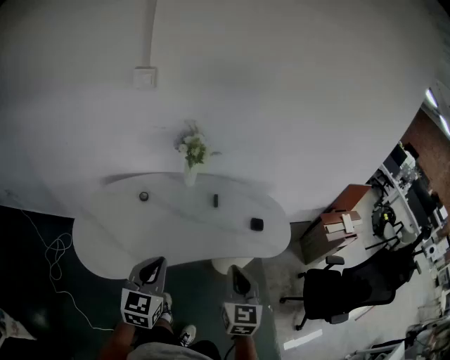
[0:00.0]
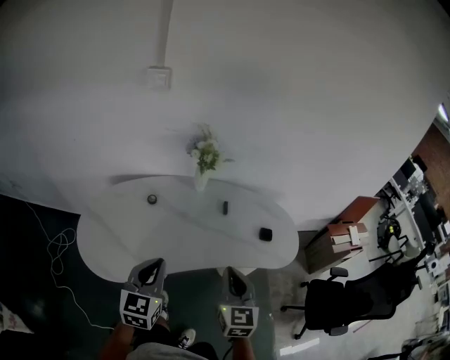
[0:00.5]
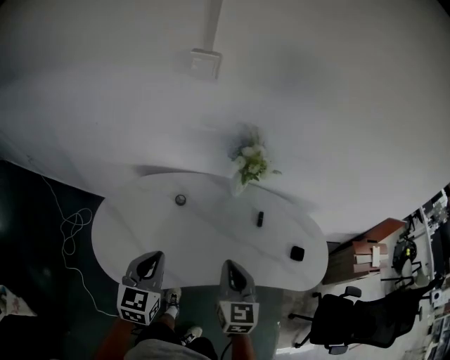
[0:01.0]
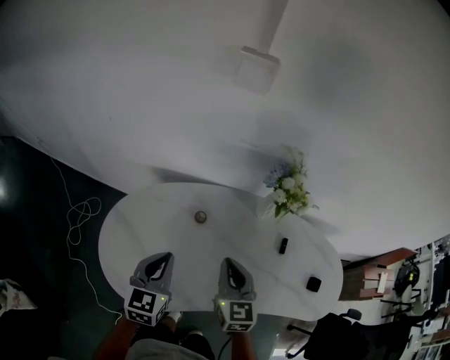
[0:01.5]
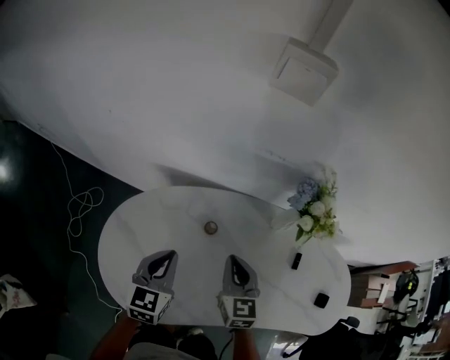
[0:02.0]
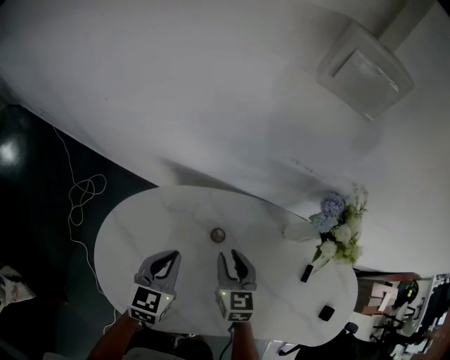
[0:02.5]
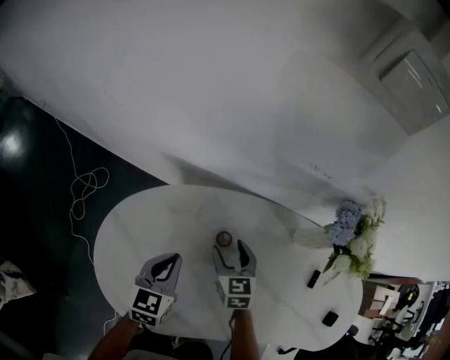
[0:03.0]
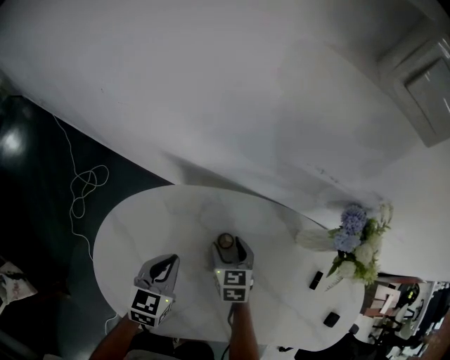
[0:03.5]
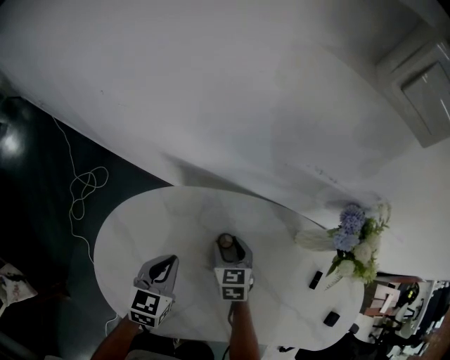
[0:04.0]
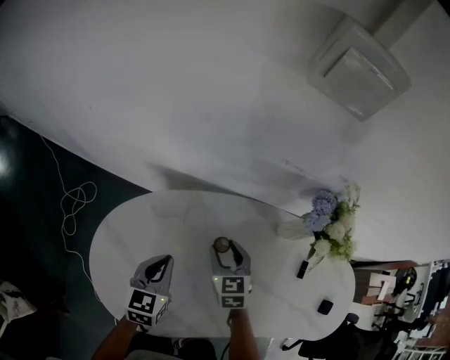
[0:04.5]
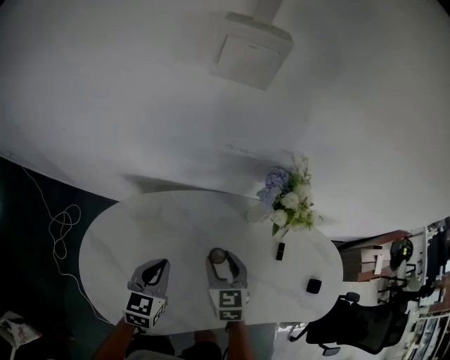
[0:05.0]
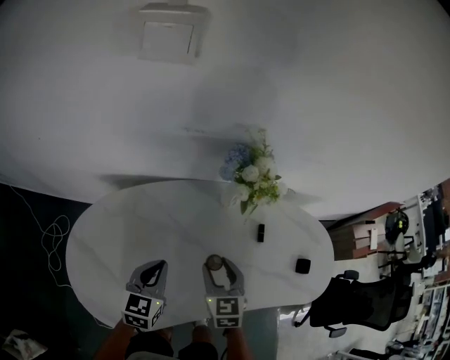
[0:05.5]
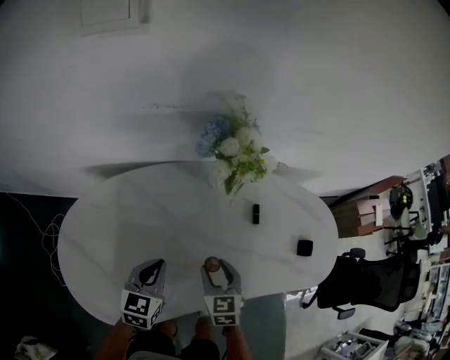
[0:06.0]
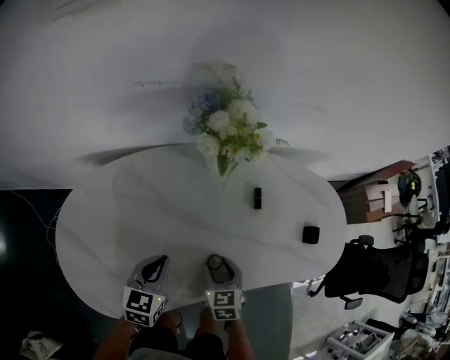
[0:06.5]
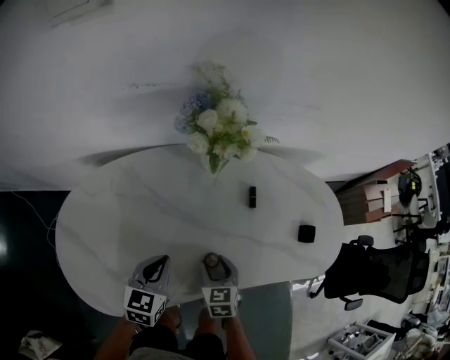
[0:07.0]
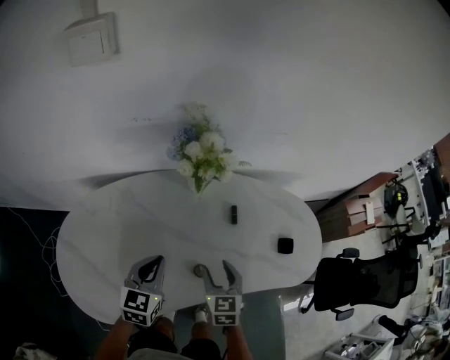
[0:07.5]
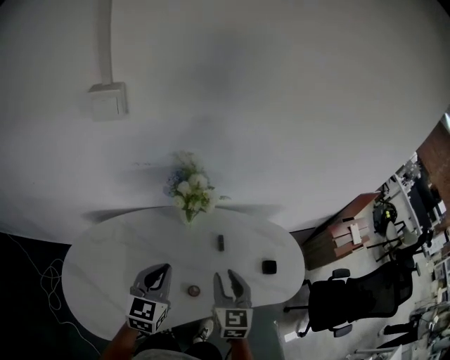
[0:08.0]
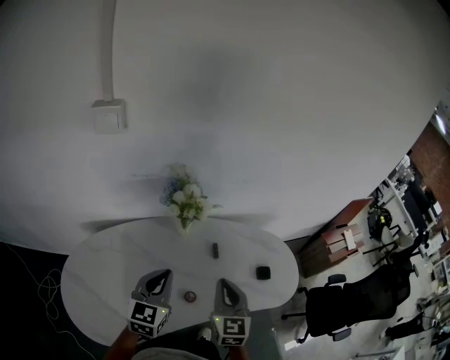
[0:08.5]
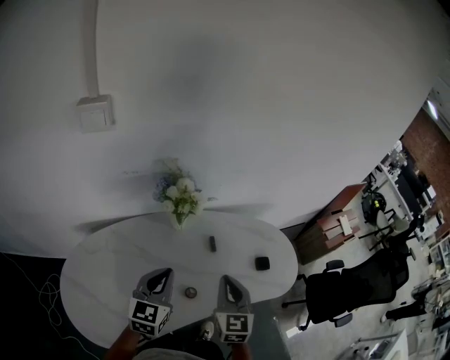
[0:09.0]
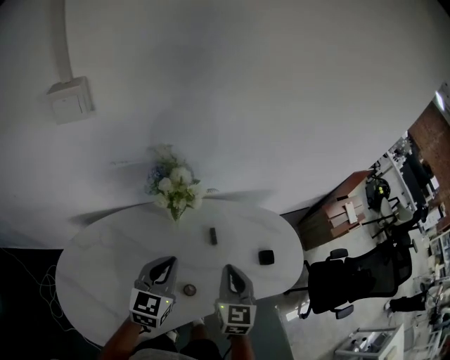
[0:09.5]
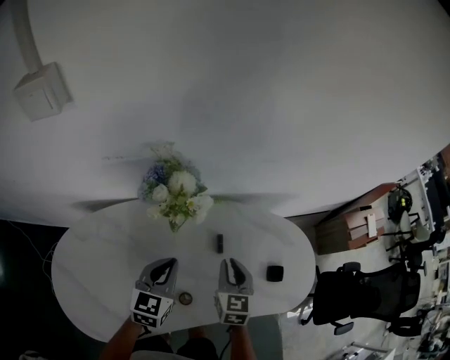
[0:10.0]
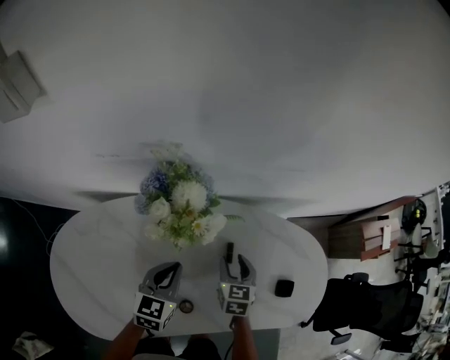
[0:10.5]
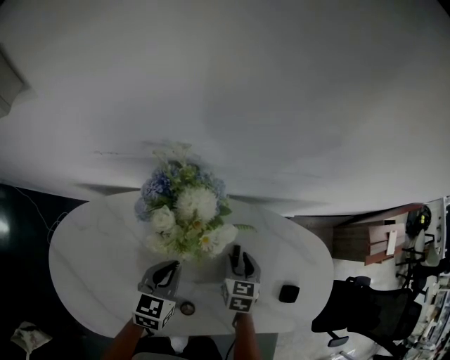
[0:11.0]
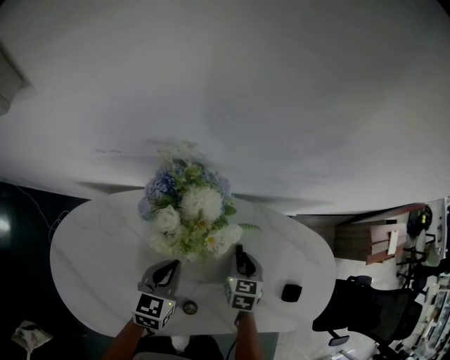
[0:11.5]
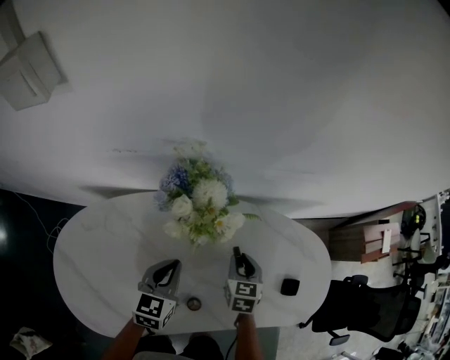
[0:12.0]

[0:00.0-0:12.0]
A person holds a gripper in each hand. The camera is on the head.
0:00.0 to 0:02.0: The left gripper shifts roughly 40 cm forward, to the left and downward, and swivels about 20 degrees. Meanwhile the right gripper is displaced forward and to the left by approximately 50 cm, and turns by some 30 degrees.
0:02.0 to 0:04.0: The left gripper shifts about 10 cm downward, while the right gripper shifts about 20 cm downward and forward, rotates approximately 20 degrees, and opens up.
0:04.0 to 0:06.0: The right gripper shifts about 30 cm to the right and backward, and rotates some 20 degrees. The left gripper travels to the right by roughly 20 cm, and rotates some 20 degrees.
0:06.0 to 0:08.0: The grippers both shift upward and to the right by approximately 20 cm. The right gripper swivels roughly 20 degrees.
0:08.0 to 0:10.0: The two grippers go about 15 cm forward and downward.
0:10.0 to 0:12.0: The left gripper shifts some 5 cm downward. Meanwhile the right gripper travels downward and forward by approximately 10 cm.

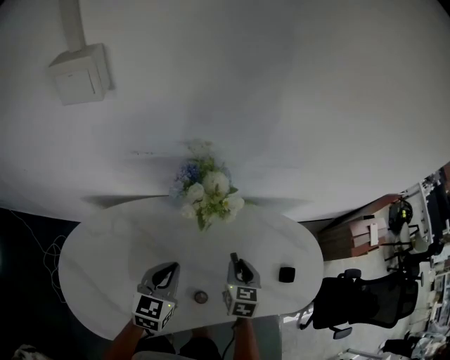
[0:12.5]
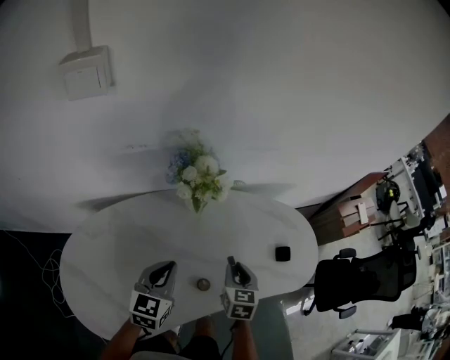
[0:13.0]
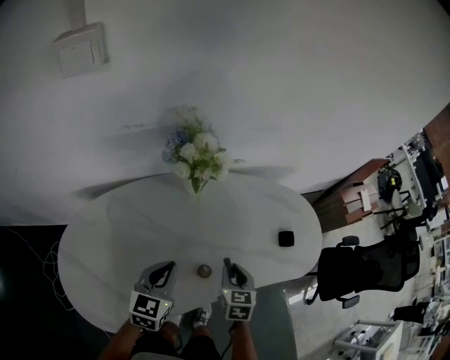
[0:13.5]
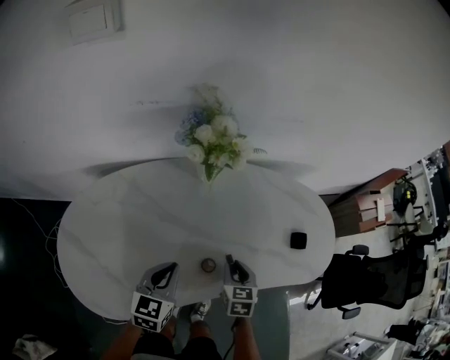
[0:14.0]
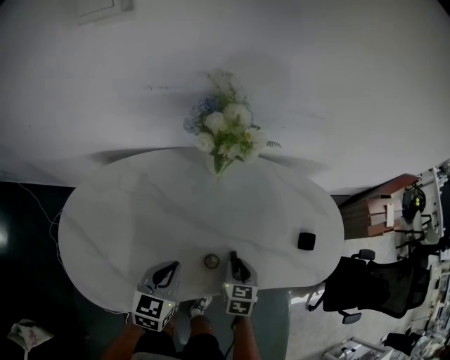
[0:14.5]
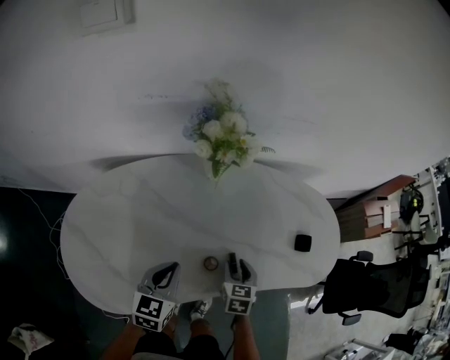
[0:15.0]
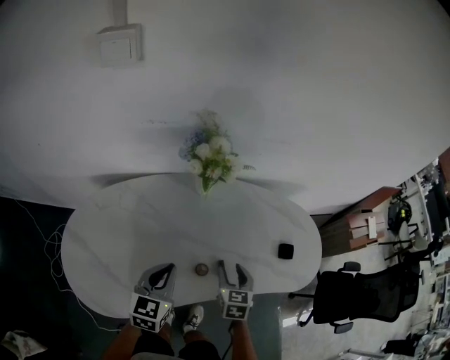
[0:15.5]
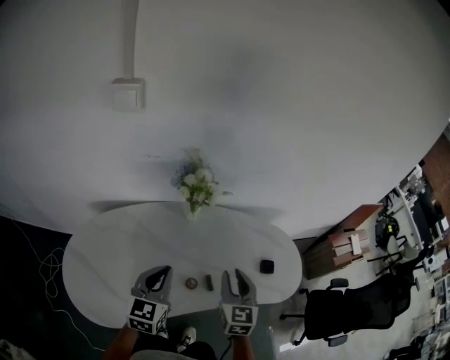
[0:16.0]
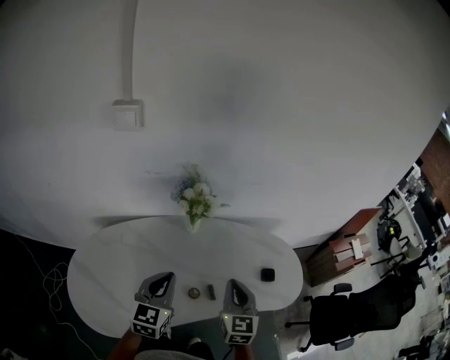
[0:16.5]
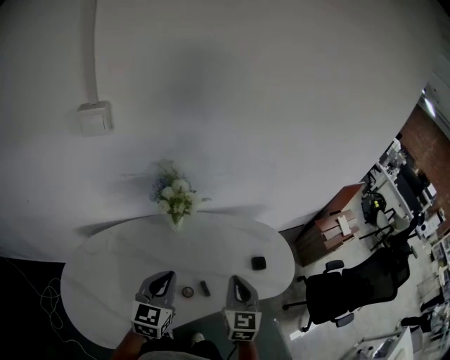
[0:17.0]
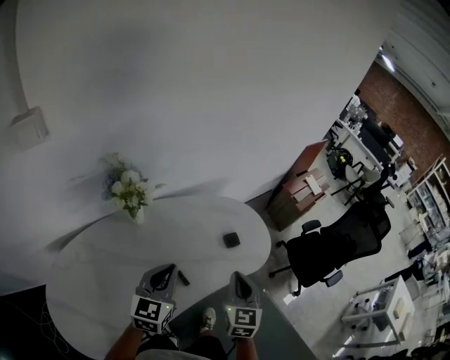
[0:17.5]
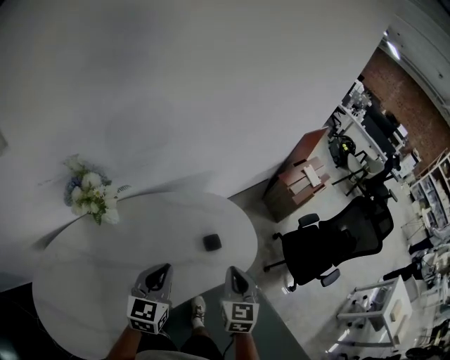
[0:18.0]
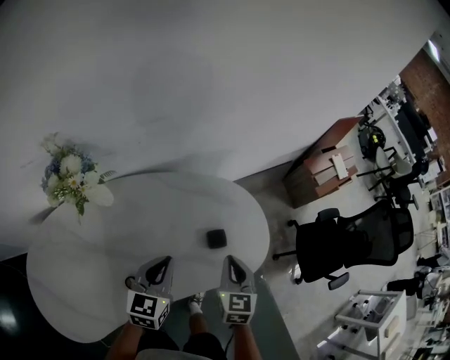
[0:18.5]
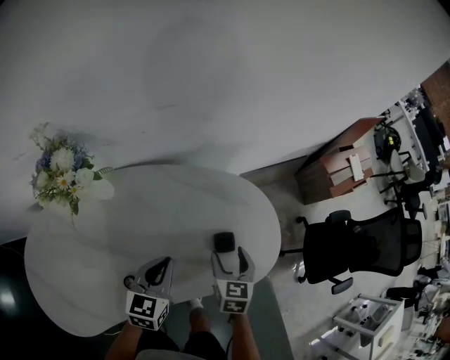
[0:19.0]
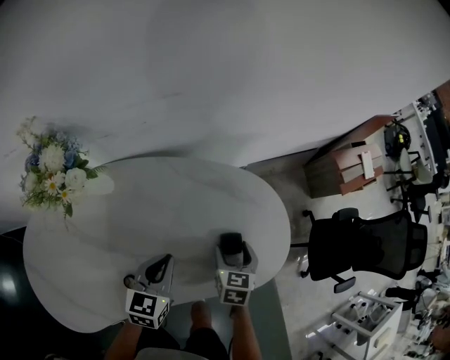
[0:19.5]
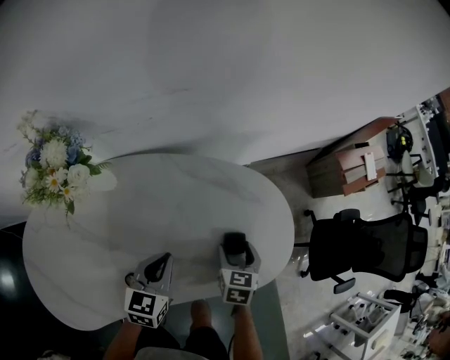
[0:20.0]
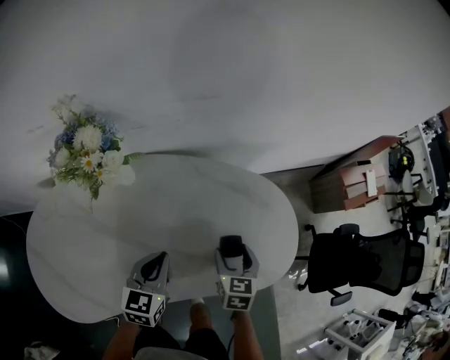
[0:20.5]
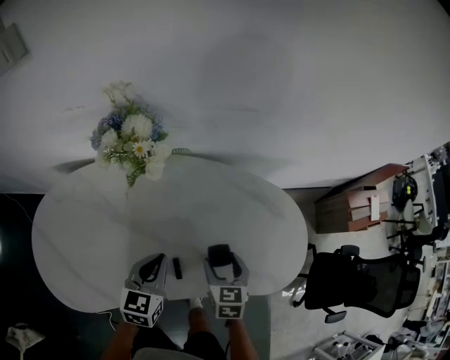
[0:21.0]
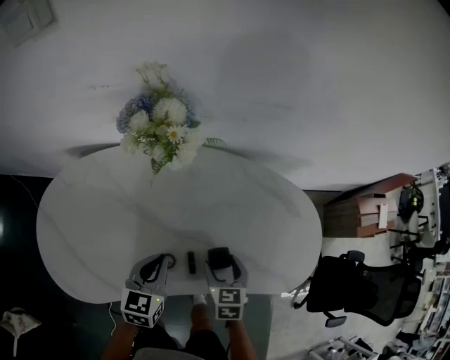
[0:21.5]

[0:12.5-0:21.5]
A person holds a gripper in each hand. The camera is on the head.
0:12.5 to 0:14.5: The two grippers go some 15 cm backward and downward.
0:14.5 to 0:17.0: Both grippers travel together upward, about 25 cm. The right gripper points its fingers approximately 30 degrees further upward. The left gripper changes its angle by about 20 degrees.
0:17.0 to 0:19.5: The right gripper goes about 35 cm downward, forward and to the right, tilts its fingers some 30 degrees downward, and opens up, while the left gripper is displaced downward, to the right and forward by approximately 30 cm, and swivels approximately 20 degrees.
0:19.5 to 0:21.5: Both grippers move to the left and backward, approximately 20 cm. The right gripper turns by roughly 30 degrees.

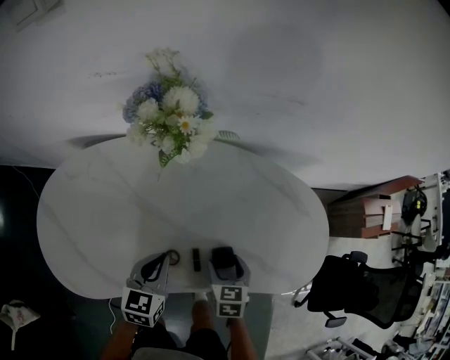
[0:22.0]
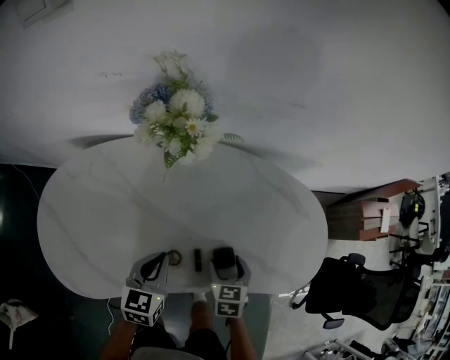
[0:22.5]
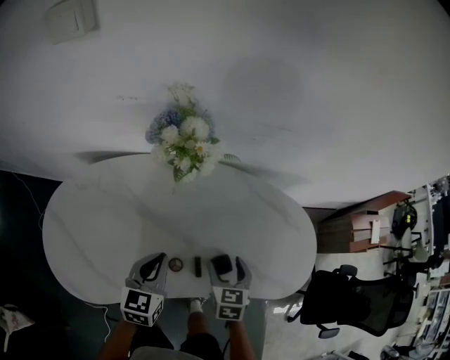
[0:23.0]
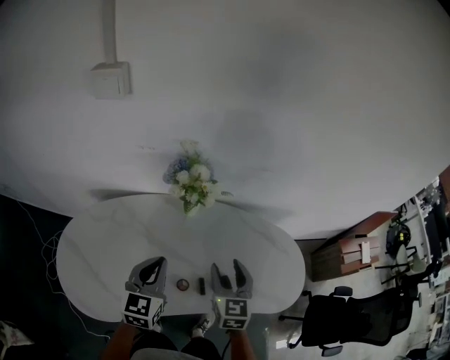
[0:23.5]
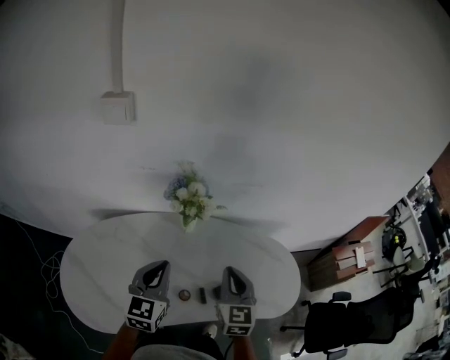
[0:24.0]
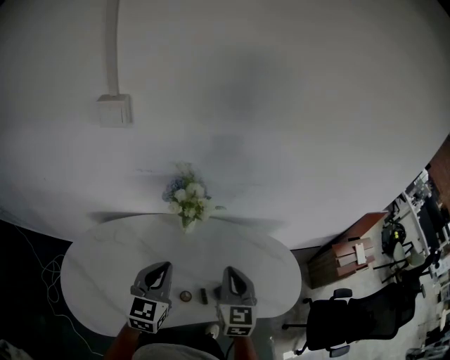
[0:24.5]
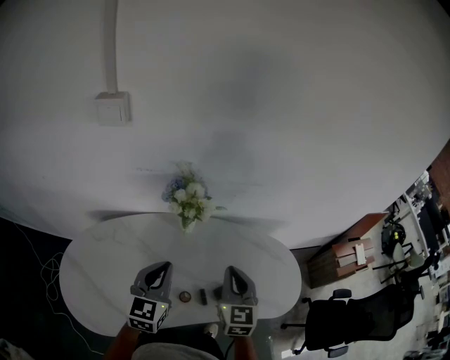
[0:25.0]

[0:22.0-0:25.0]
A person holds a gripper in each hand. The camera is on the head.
0:22.0 to 0:23.5: Both grippers move upward, roughly 20 cm. The right gripper changes its angle by some 30 degrees.
0:23.5 to 0:25.0: The right gripper heads upward, covering roughly 5 cm, and closes.

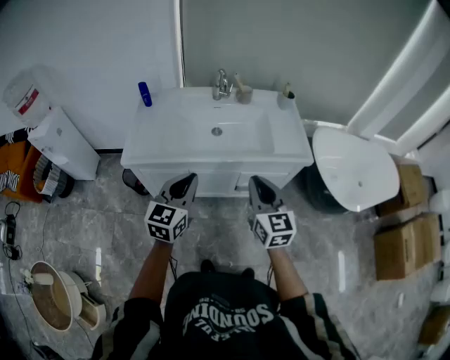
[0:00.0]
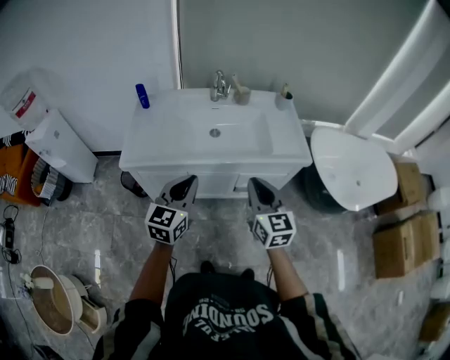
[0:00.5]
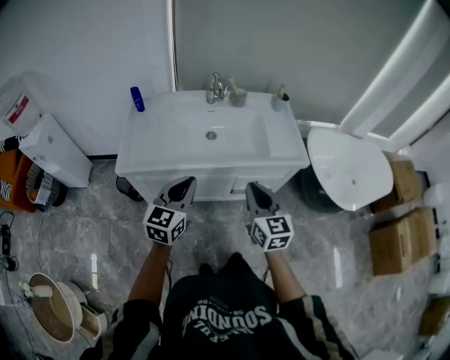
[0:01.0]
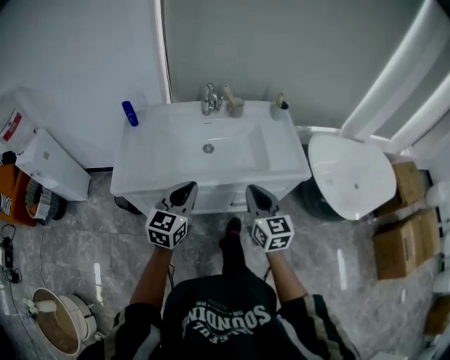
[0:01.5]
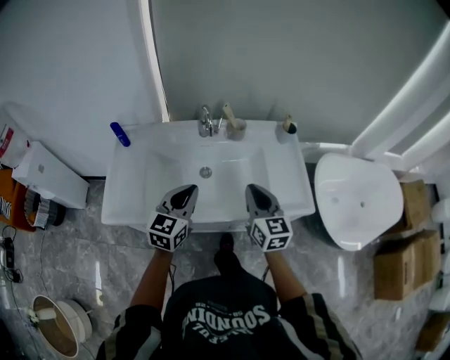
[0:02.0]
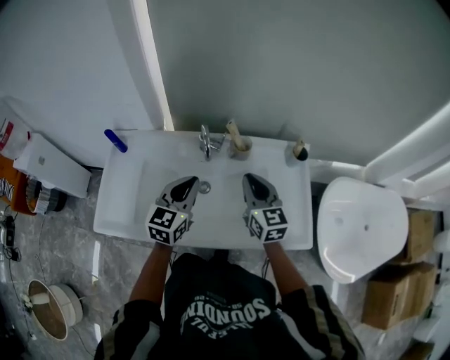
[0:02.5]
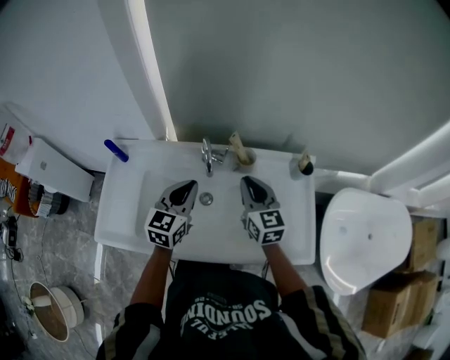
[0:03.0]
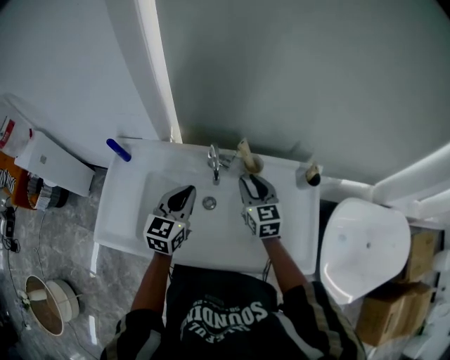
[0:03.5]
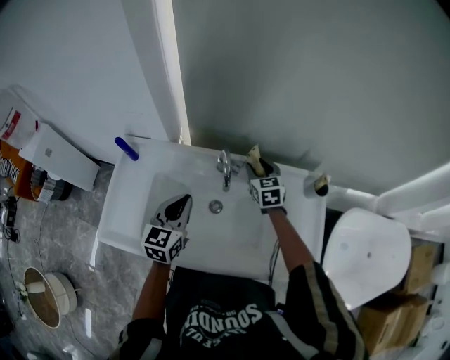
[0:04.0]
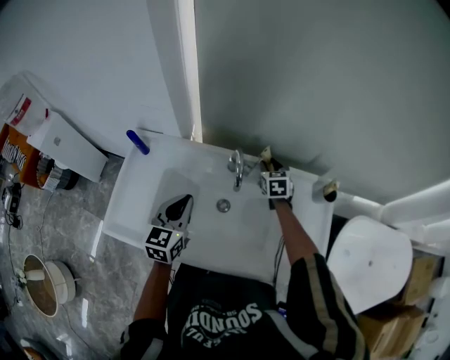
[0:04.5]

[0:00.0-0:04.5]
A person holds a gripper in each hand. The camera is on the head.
0:00.0 to 0:02.0: The grippers both shift forward by about 25 cm.
0:02.0 to 0:04.5: The left gripper heads forward and to the left, covering roughly 20 cm, and swivels approximately 20 degrees, while the right gripper goes approximately 40 cm forward, swivels about 30 degrees, and opens.
